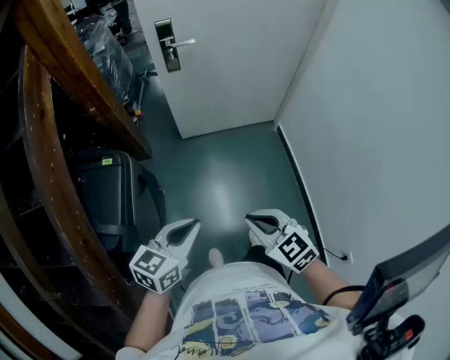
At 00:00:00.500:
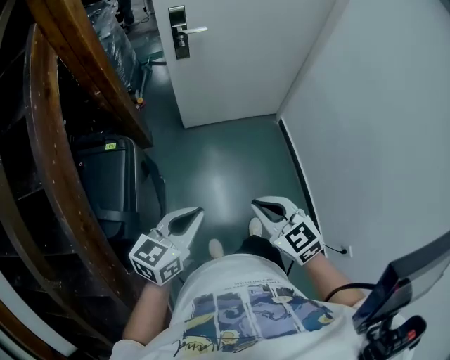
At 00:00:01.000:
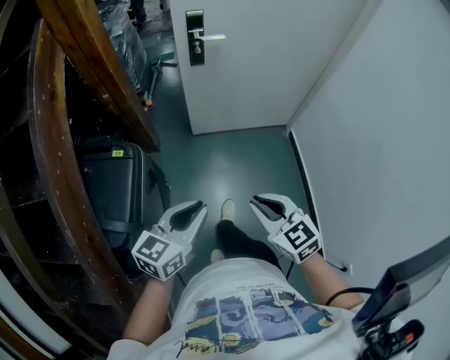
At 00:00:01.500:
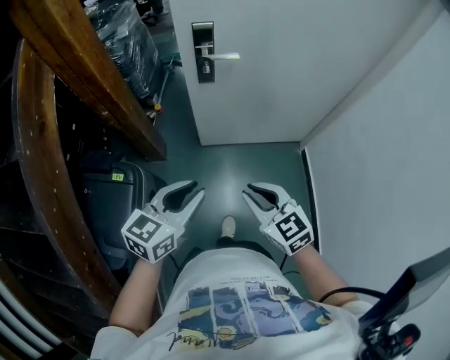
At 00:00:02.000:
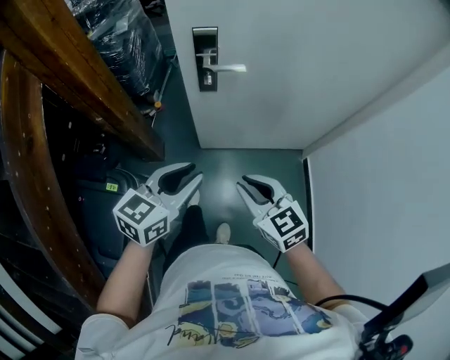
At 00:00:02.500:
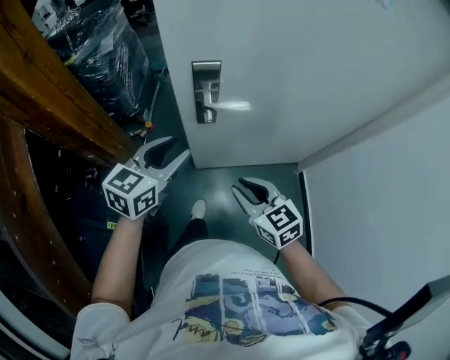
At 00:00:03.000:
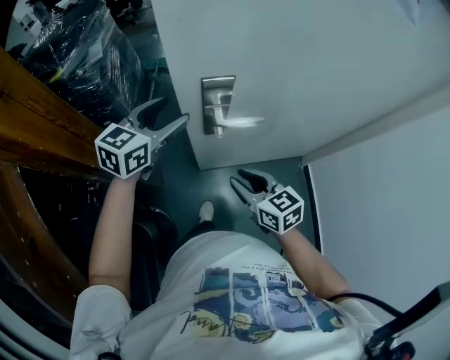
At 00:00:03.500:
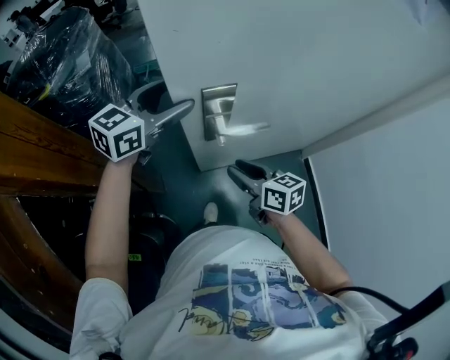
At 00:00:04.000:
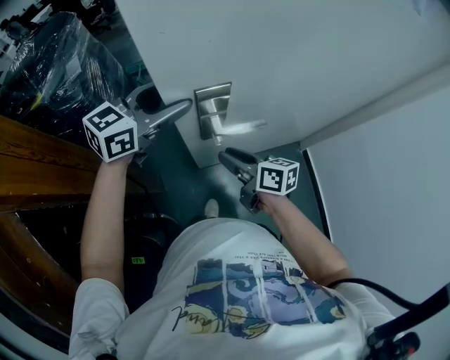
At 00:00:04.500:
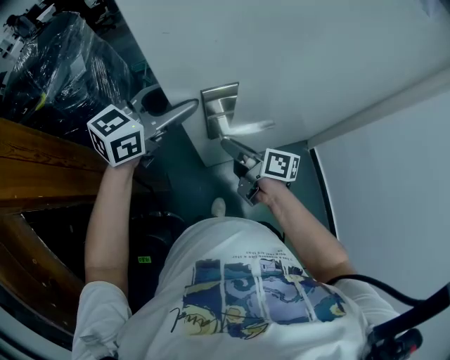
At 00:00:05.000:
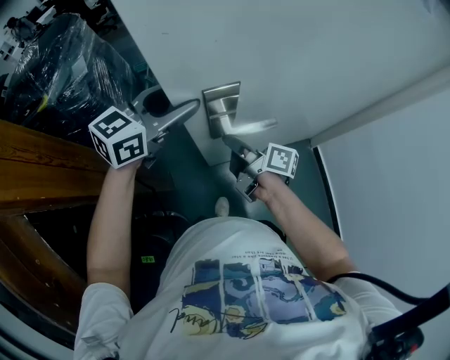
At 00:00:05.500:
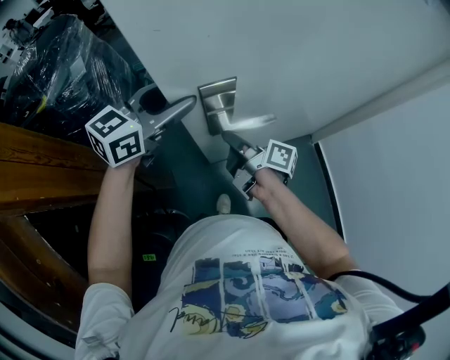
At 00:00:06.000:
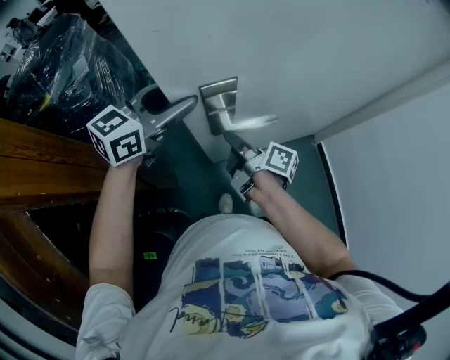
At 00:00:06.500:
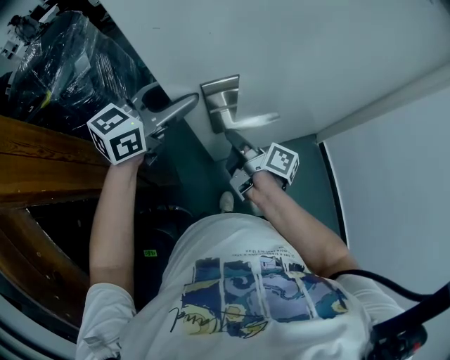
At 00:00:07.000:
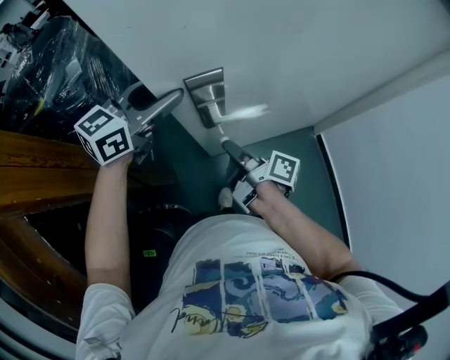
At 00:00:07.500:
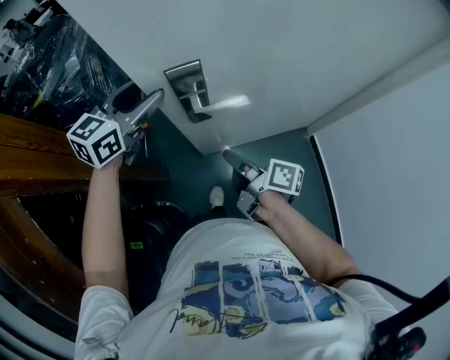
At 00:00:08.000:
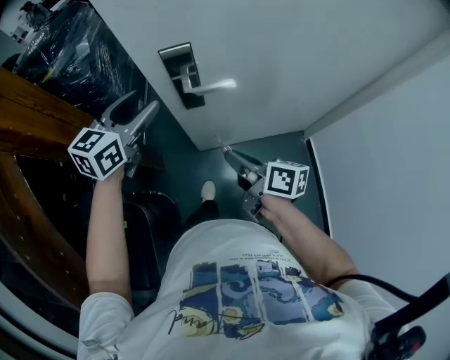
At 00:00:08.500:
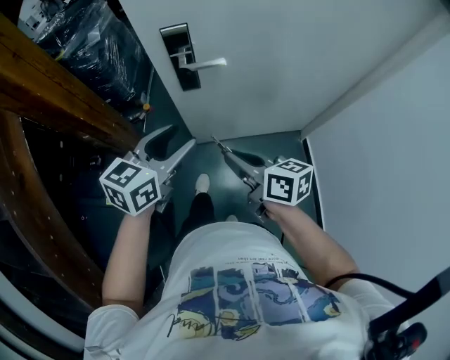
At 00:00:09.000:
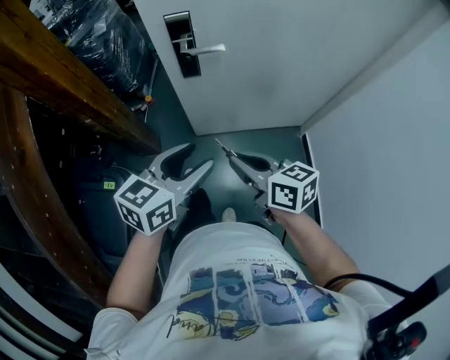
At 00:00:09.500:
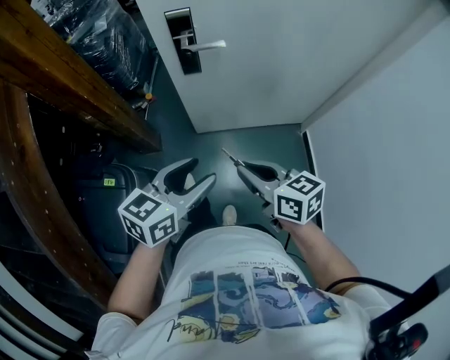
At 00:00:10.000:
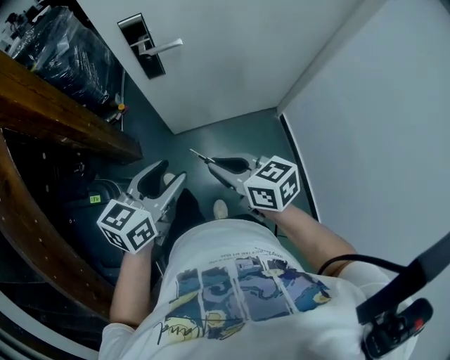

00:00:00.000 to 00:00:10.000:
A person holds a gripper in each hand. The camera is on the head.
00:00:00.000 to 00:00:02.000: The two grippers travel together, forward, about 40 cm.
00:00:02.000 to 00:00:04.000: The two grippers go approximately 35 cm forward. The left gripper rotates some 30 degrees, and opens up, while the right gripper twists about 50 degrees clockwise, seen from behind.
00:00:04.000 to 00:00:06.000: The right gripper turns by roughly 40 degrees, and closes.
00:00:06.000 to 00:00:08.000: The left gripper travels backward by approximately 10 cm, and swivels about 20 degrees. The right gripper moves backward and to the right, about 20 cm, and swivels roughly 30 degrees.
00:00:08.000 to 00:00:10.000: The right gripper moves backward, about 20 cm, and swivels some 30 degrees. Meanwhile the left gripper moves backward, roughly 30 cm.

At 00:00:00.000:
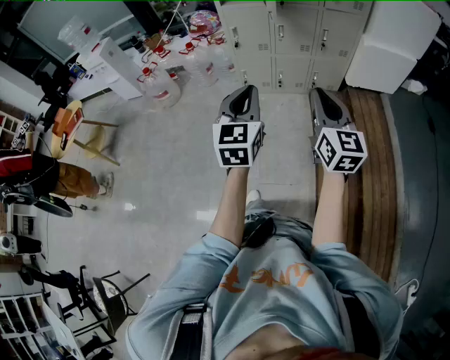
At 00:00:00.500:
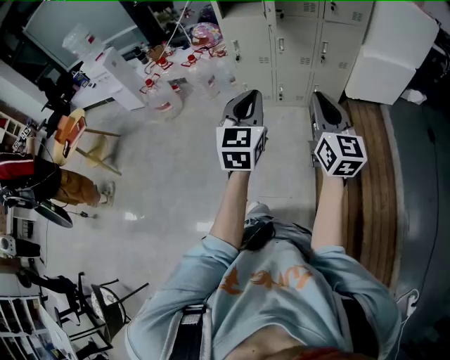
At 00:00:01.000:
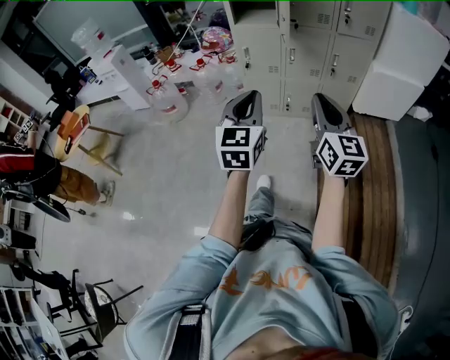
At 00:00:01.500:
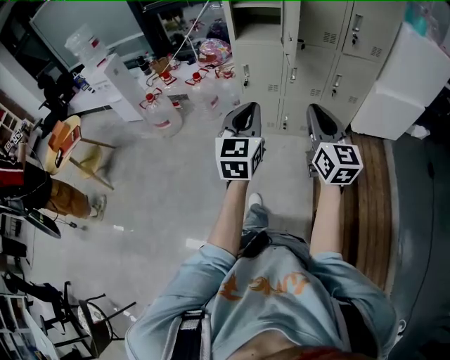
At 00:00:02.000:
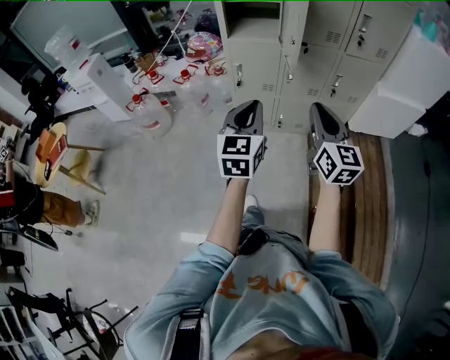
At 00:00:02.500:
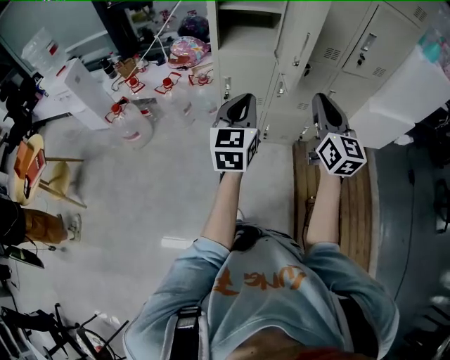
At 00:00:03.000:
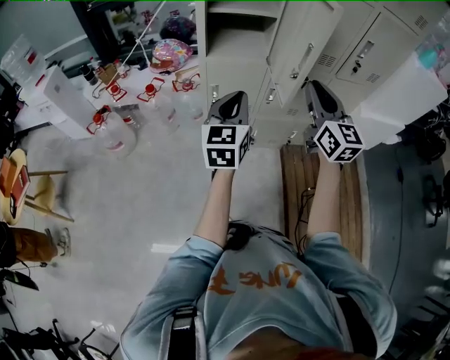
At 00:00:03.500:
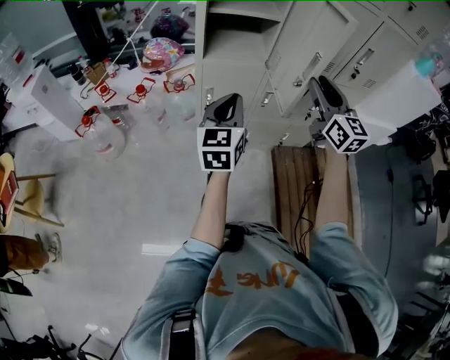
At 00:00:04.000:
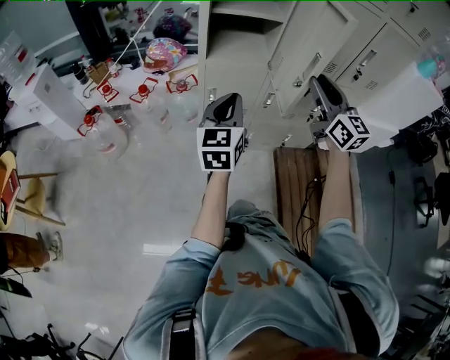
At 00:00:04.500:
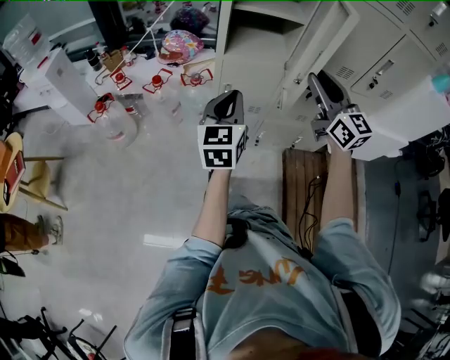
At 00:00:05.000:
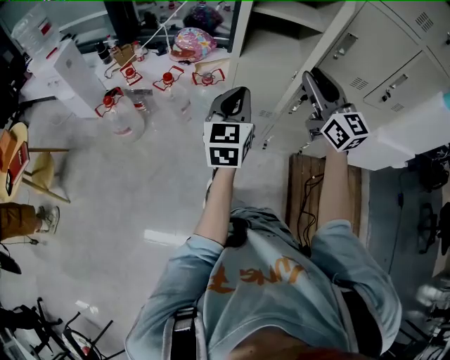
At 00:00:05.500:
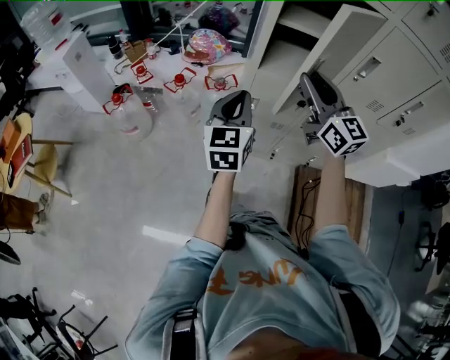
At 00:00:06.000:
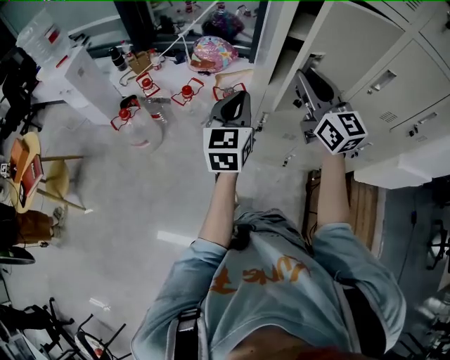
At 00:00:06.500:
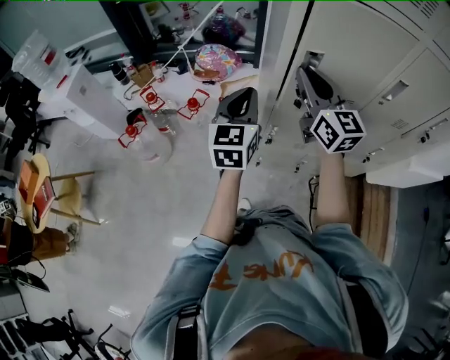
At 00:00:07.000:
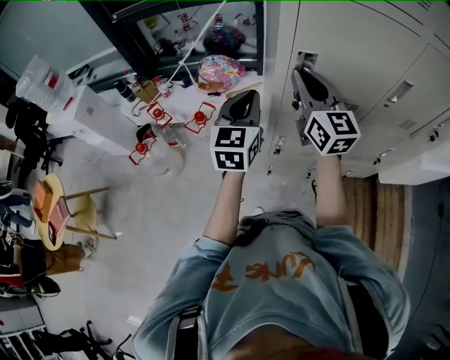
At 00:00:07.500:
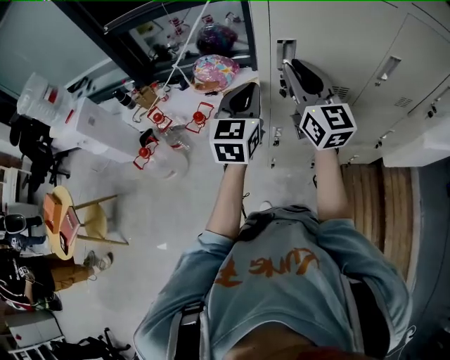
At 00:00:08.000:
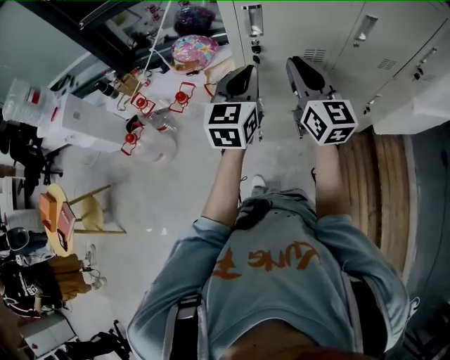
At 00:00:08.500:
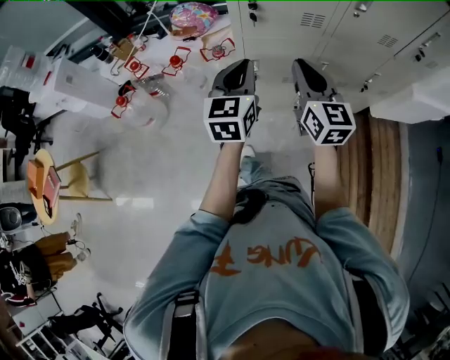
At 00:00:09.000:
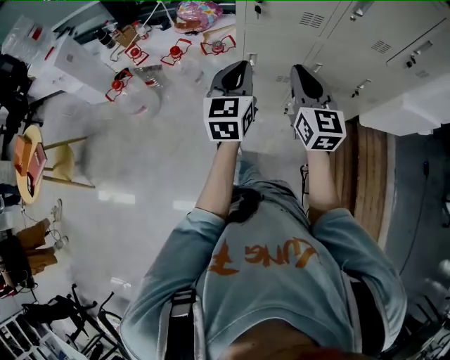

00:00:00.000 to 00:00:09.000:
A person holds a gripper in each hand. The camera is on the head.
00:00:00.000 to 00:00:02.000: The grippers both shift forward by about 25 cm.
00:00:02.000 to 00:00:04.500: The left gripper shifts approximately 25 cm forward and to the left, while the right gripper goes some 25 cm forward, and opens its fingers.
00:00:04.500 to 00:00:07.000: The right gripper travels forward and to the left by approximately 30 cm, while the left gripper is displaced forward by about 25 cm.
00:00:07.000 to 00:00:09.000: The right gripper is displaced backward and downward by some 25 cm. Meanwhile the left gripper travels backward by about 20 cm.

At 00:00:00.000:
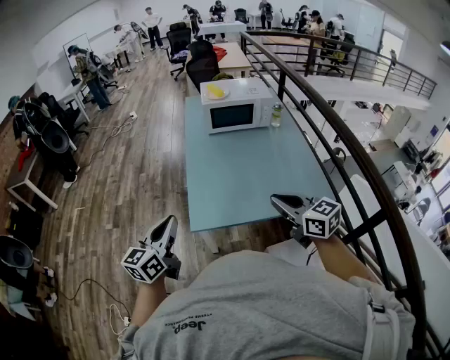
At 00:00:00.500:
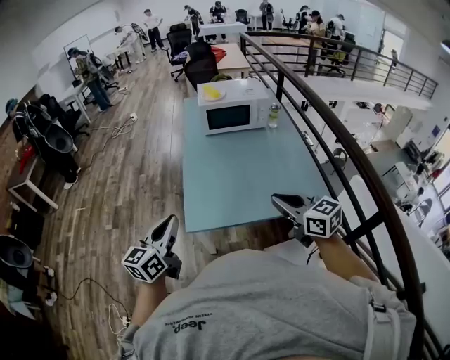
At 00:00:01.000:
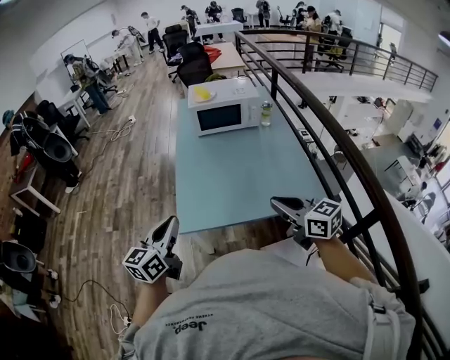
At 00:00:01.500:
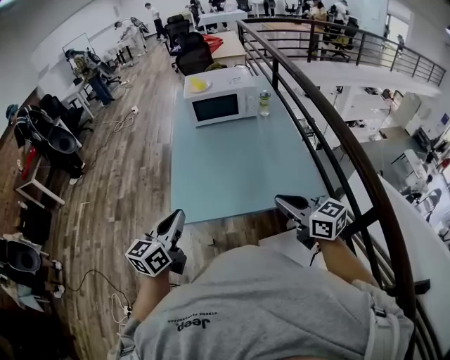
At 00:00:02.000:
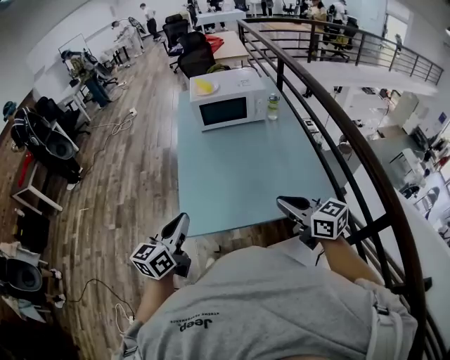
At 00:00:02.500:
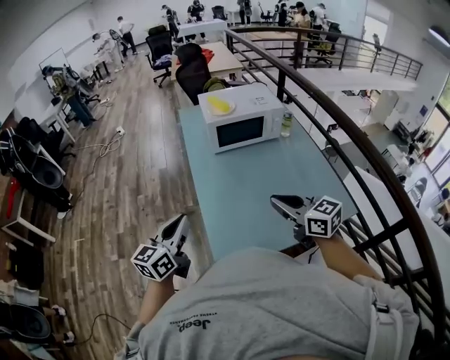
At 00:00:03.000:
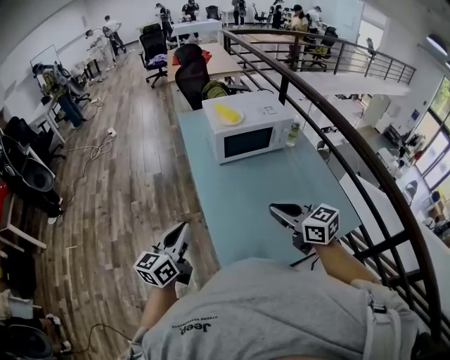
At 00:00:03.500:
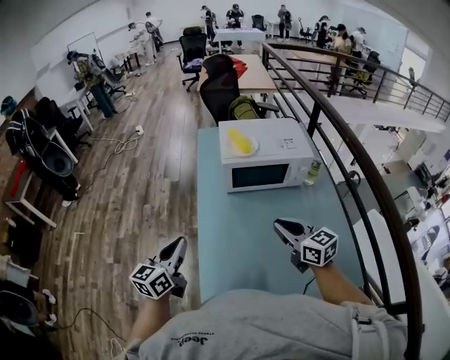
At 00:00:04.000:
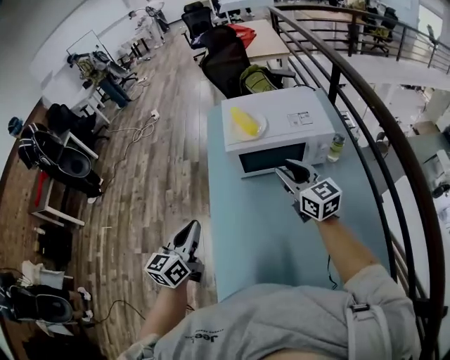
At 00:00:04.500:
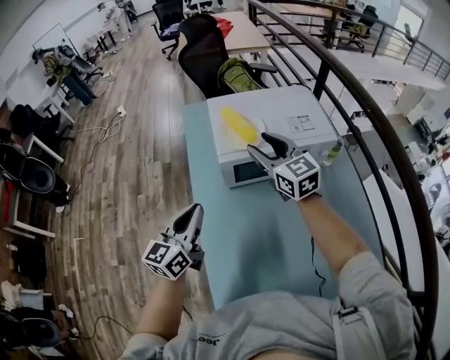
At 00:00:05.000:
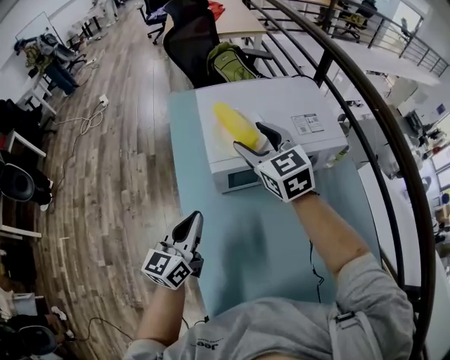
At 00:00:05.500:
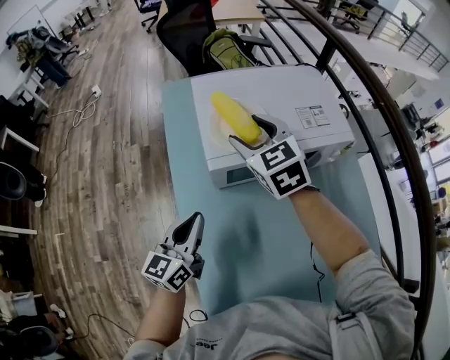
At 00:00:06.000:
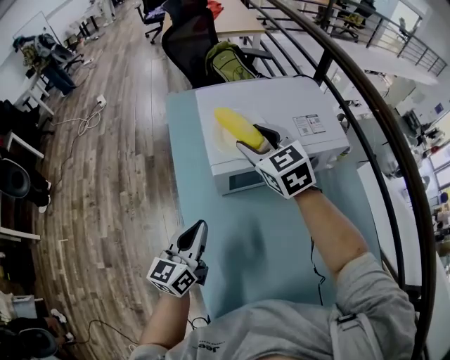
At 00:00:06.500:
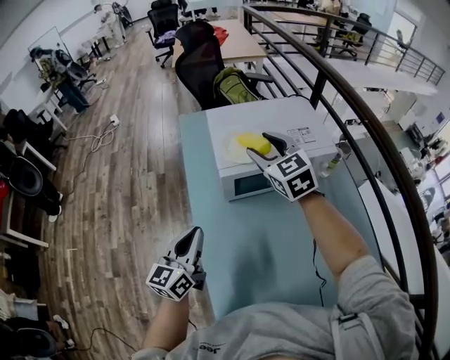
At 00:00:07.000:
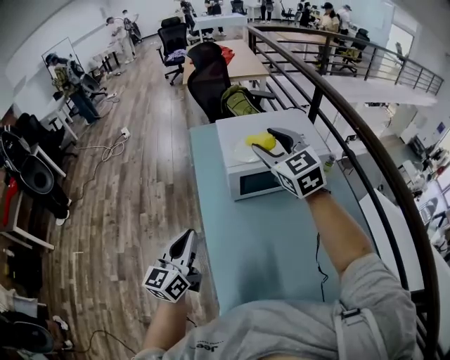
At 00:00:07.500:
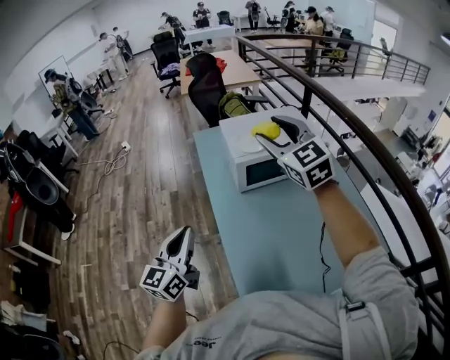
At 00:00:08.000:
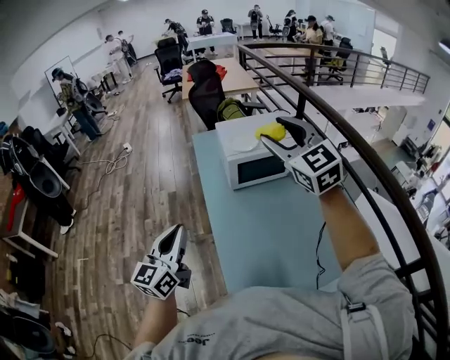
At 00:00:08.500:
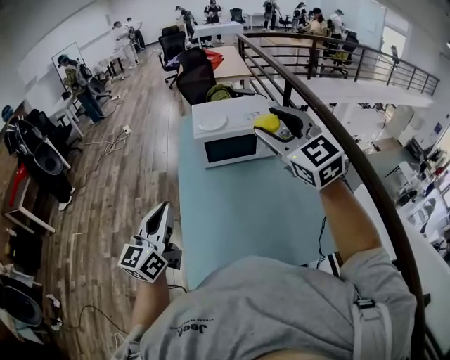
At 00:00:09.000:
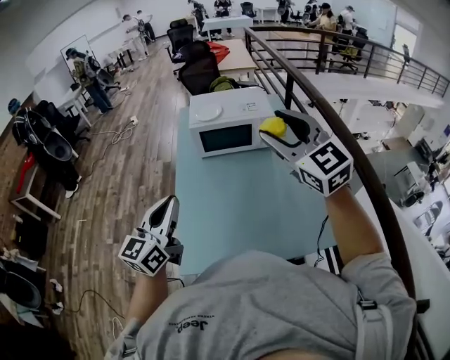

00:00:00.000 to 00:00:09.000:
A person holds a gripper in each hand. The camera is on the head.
00:00:00.000 to 00:00:02.000: Both grippers move to the right, about 10 cm.
00:00:02.000 to 00:00:04.500: Both grippers are carried forward, approximately 60 cm. The right gripper rotates about 20 degrees, and opens its fingers.
00:00:04.500 to 00:00:07.000: The right gripper moves upward, approximately 10 cm. The left gripper shifts some 10 cm backward and to the left.
00:00:07.000 to 00:00:09.000: The left gripper moves backward, to the right and upward, approximately 30 cm. The right gripper moves backward and to the right, some 35 cm.
